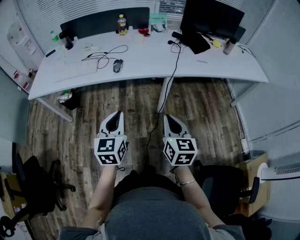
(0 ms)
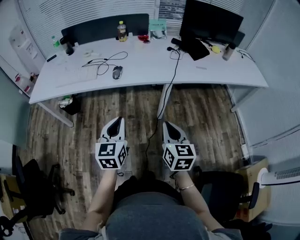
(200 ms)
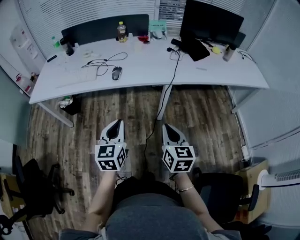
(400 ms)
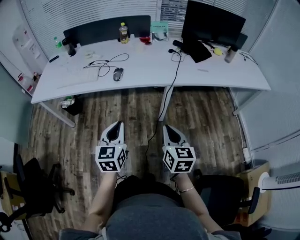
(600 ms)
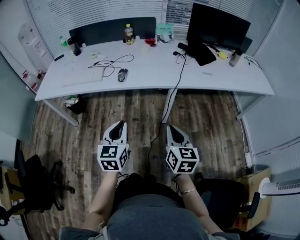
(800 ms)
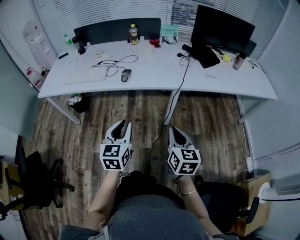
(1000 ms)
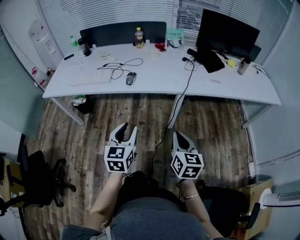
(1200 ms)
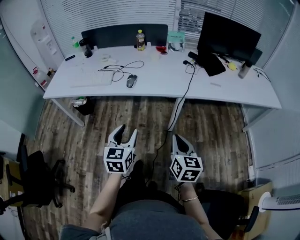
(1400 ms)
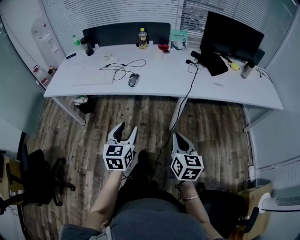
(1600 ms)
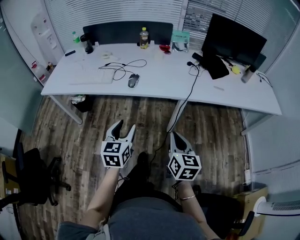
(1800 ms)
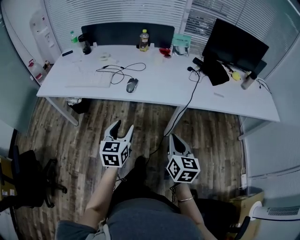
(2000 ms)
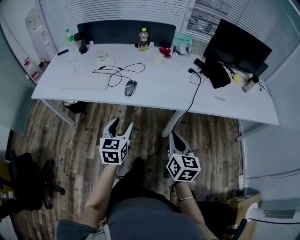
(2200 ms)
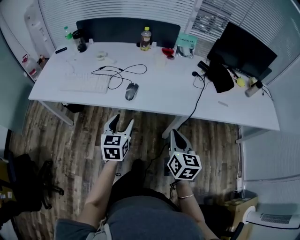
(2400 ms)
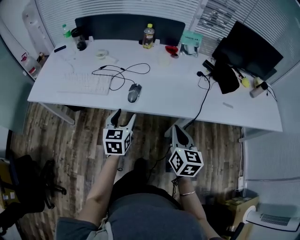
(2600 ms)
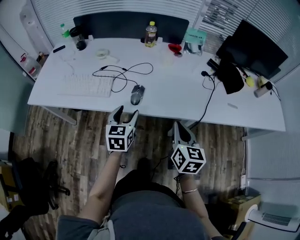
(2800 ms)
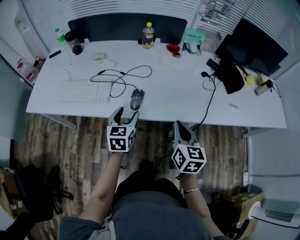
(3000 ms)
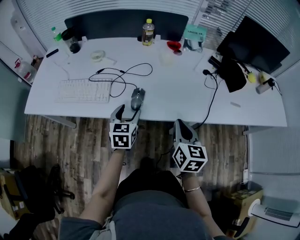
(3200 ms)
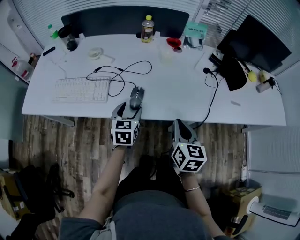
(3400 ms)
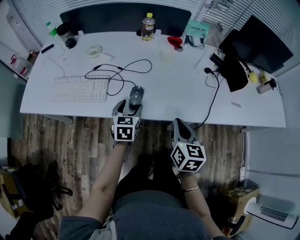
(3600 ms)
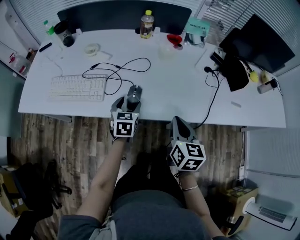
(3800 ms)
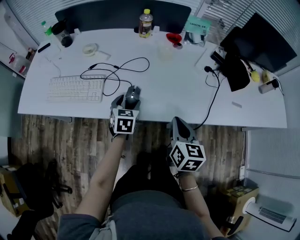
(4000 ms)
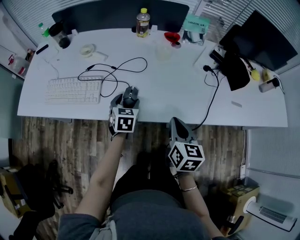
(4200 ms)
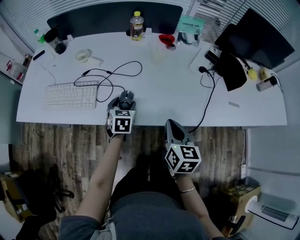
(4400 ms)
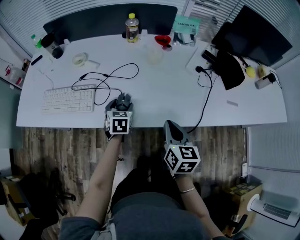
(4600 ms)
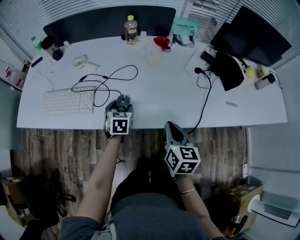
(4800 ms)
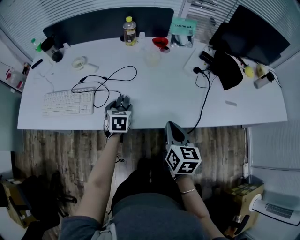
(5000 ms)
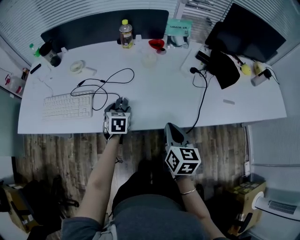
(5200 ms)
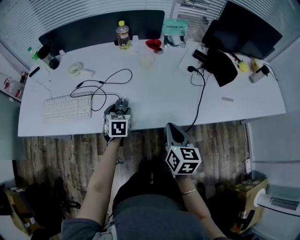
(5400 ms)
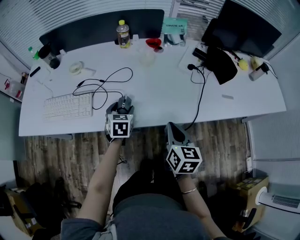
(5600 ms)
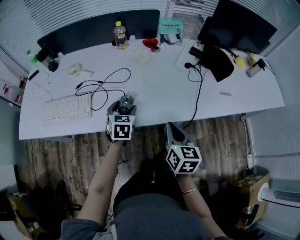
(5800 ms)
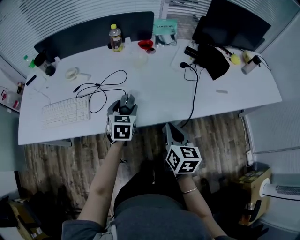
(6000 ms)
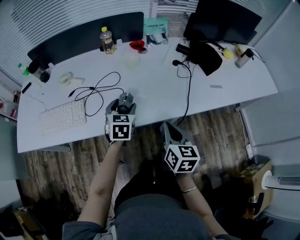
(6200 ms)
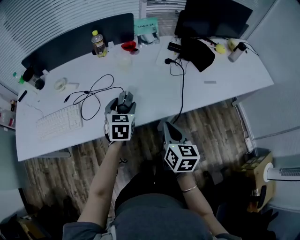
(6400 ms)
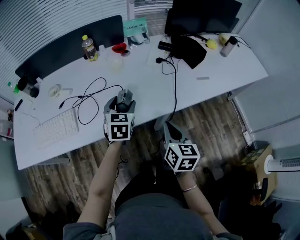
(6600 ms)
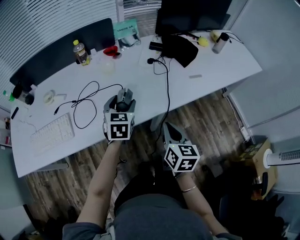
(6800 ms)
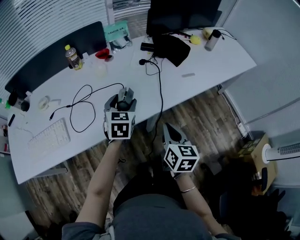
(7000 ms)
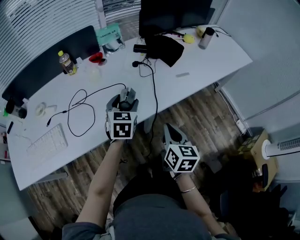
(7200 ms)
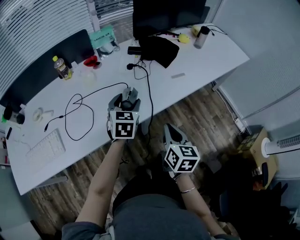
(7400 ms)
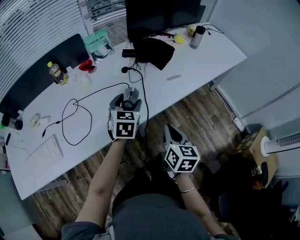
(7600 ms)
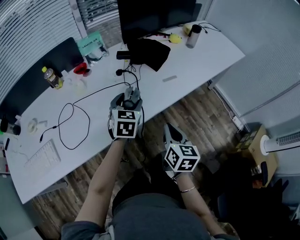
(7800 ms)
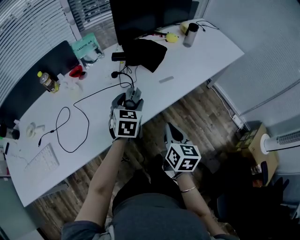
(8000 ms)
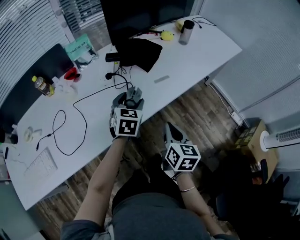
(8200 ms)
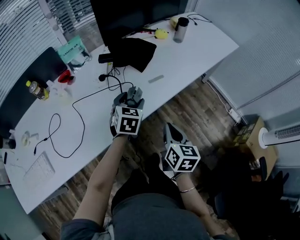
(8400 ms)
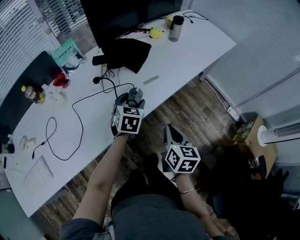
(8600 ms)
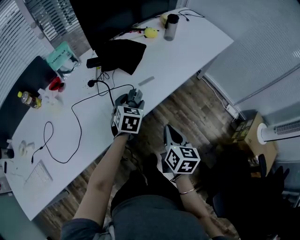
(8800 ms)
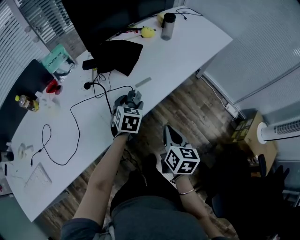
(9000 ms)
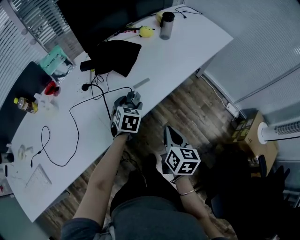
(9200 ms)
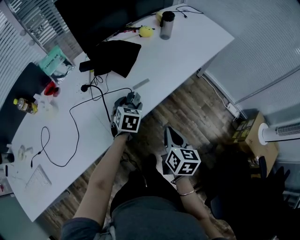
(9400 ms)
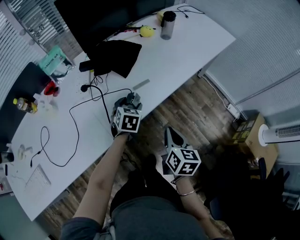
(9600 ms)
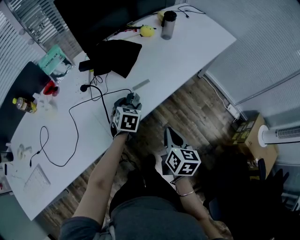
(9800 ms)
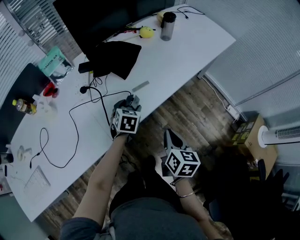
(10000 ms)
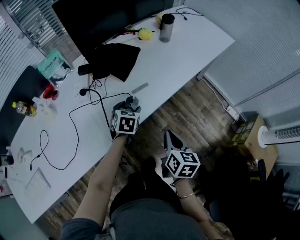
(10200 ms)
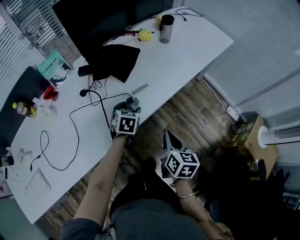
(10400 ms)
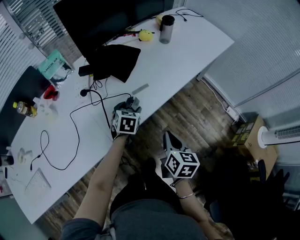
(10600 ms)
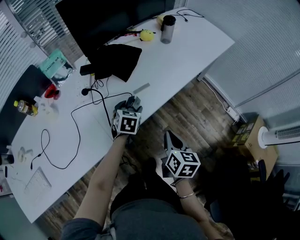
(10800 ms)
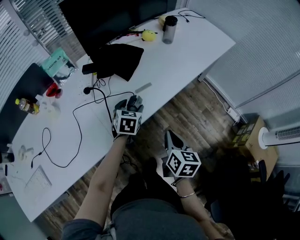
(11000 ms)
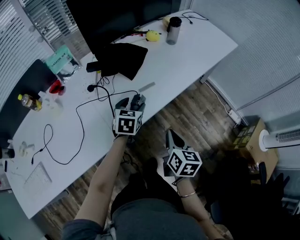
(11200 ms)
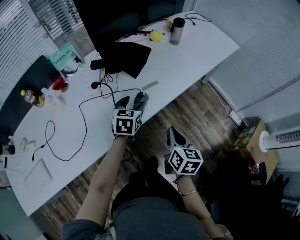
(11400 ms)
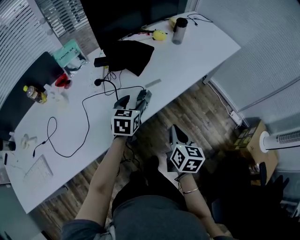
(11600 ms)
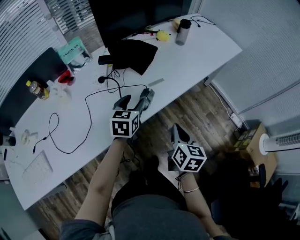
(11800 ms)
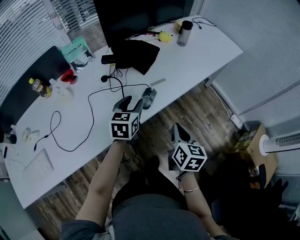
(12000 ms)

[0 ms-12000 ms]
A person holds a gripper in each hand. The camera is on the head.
0 ms to 1600 ms: The left gripper opens up.
1600 ms to 3000 ms: Both grippers move forward, roughly 30 cm.
3000 ms to 4400 ms: The left gripper moves forward and downward, some 15 cm, while the right gripper heads forward, covering roughly 5 cm.
4400 ms to 6000 ms: The right gripper moves approximately 5 cm. Meanwhile the left gripper is displaced upward and to the right by approximately 10 cm.
6000 ms to 7600 ms: The grippers both shift to the right by approximately 20 cm. The right gripper changes its angle by about 20 degrees. The left gripper swivels about 30 degrees.
7600 ms to 9000 ms: The left gripper is displaced to the right, forward and downward by approximately 20 cm; the right gripper goes roughly 15 cm to the right and forward.
9000 ms to 10400 ms: The left gripper moves some 5 cm.
10400 ms to 12000 ms: The right gripper ends up approximately 5 cm from where it was, while the left gripper heads upward, backward and to the left, covering about 15 cm, and rotates about 20 degrees.

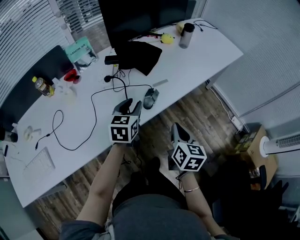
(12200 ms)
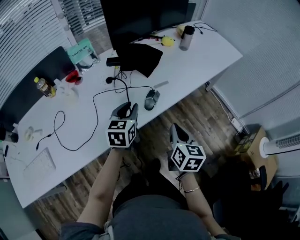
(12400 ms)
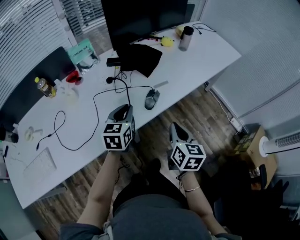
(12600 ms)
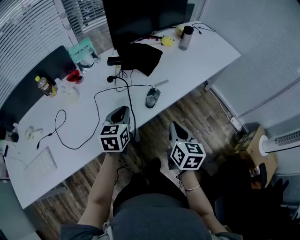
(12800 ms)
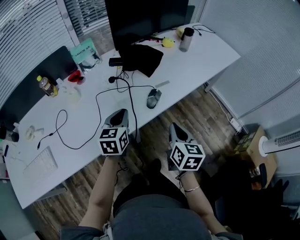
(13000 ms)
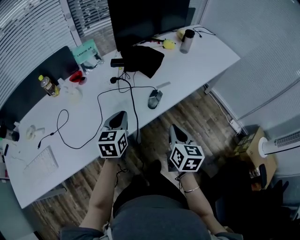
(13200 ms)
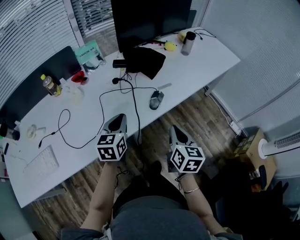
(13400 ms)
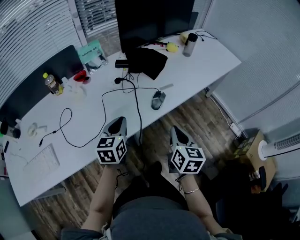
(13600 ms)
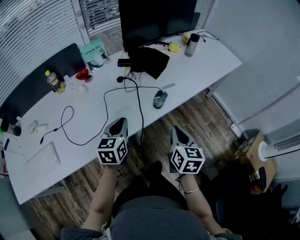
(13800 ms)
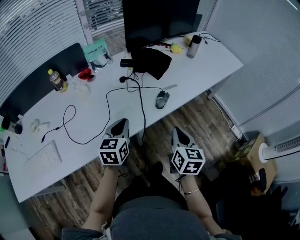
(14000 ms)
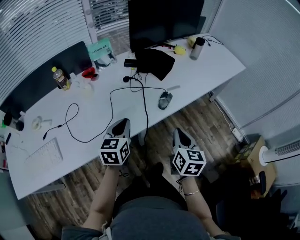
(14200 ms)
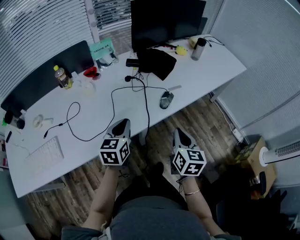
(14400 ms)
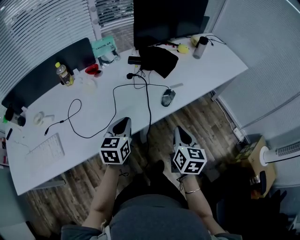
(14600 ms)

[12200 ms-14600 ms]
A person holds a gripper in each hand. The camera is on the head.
12200 ms to 13400 ms: The right gripper shifts by some 5 cm; the left gripper moves to the left and backward, approximately 10 cm, and closes up.
13400 ms to 14600 ms: The left gripper travels backward by about 5 cm.

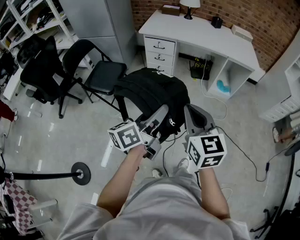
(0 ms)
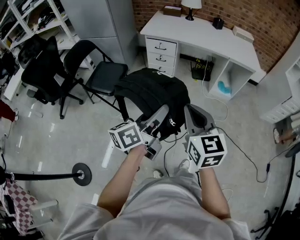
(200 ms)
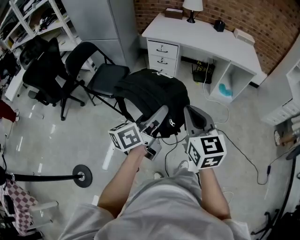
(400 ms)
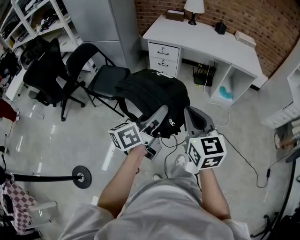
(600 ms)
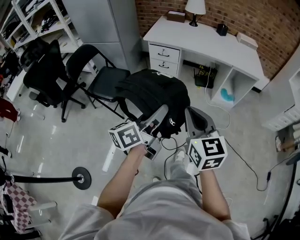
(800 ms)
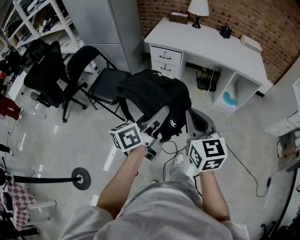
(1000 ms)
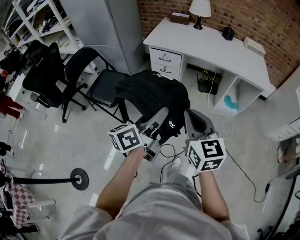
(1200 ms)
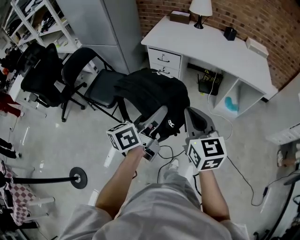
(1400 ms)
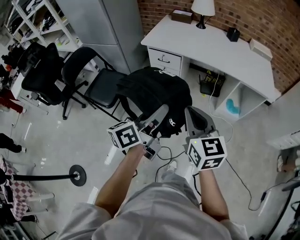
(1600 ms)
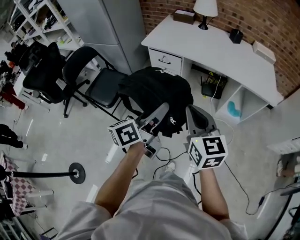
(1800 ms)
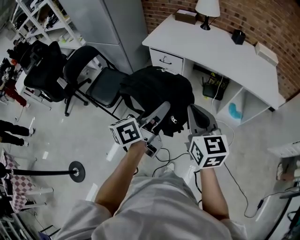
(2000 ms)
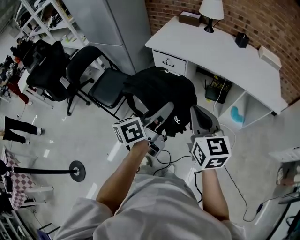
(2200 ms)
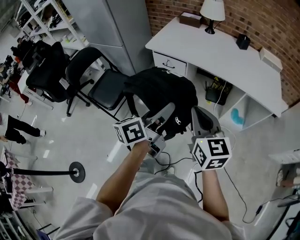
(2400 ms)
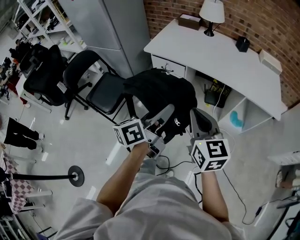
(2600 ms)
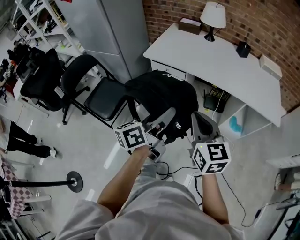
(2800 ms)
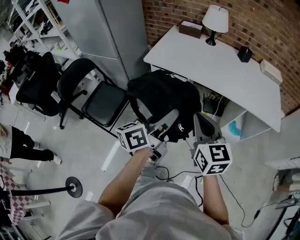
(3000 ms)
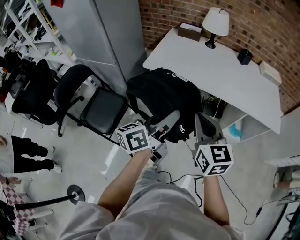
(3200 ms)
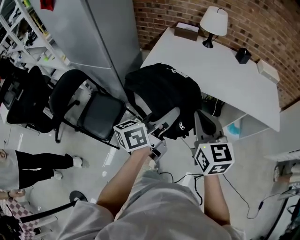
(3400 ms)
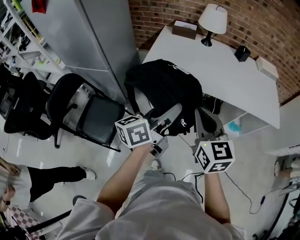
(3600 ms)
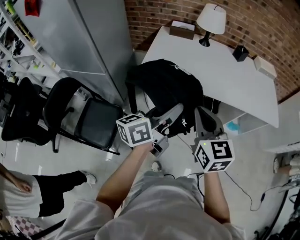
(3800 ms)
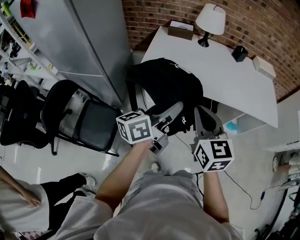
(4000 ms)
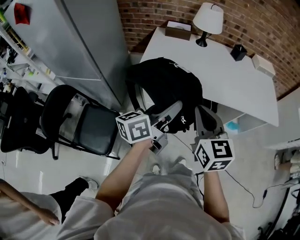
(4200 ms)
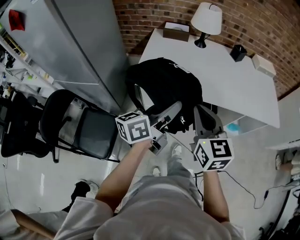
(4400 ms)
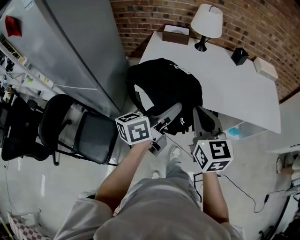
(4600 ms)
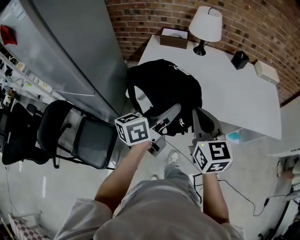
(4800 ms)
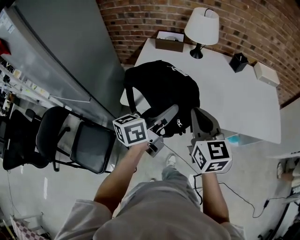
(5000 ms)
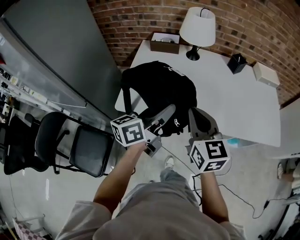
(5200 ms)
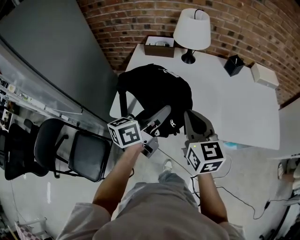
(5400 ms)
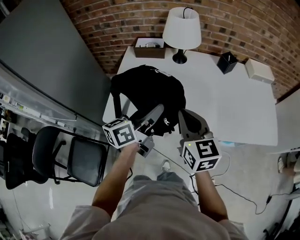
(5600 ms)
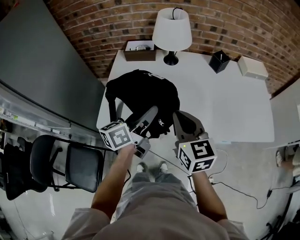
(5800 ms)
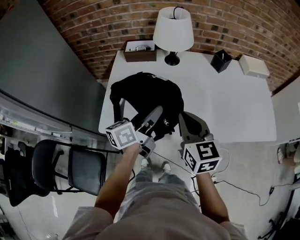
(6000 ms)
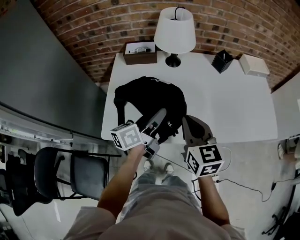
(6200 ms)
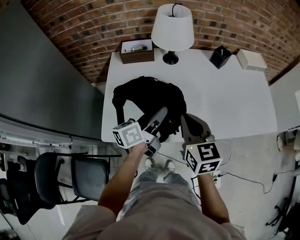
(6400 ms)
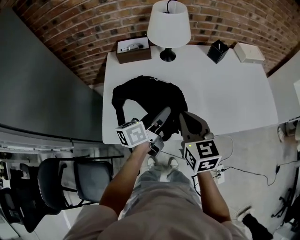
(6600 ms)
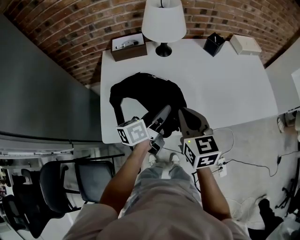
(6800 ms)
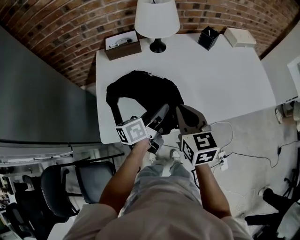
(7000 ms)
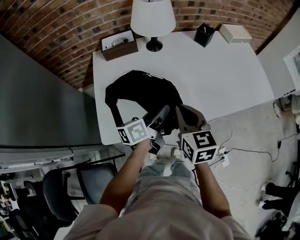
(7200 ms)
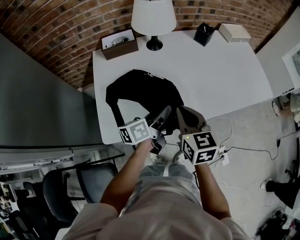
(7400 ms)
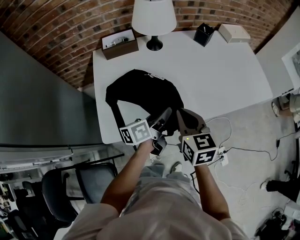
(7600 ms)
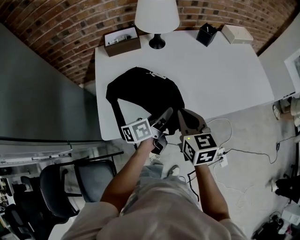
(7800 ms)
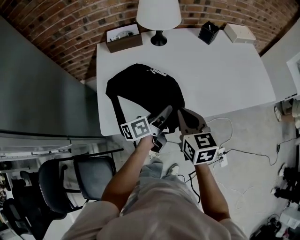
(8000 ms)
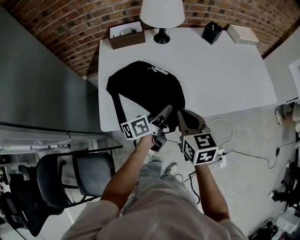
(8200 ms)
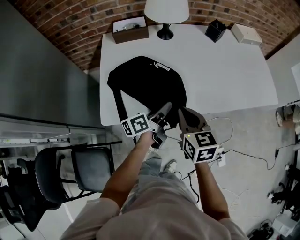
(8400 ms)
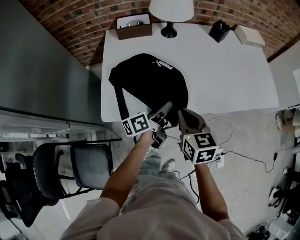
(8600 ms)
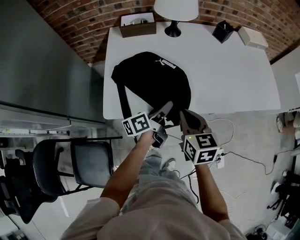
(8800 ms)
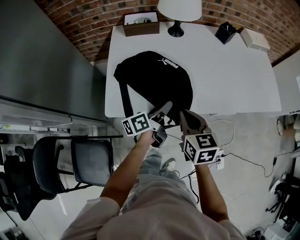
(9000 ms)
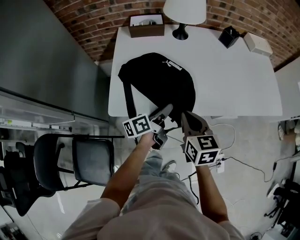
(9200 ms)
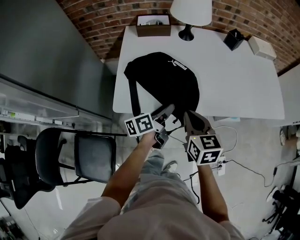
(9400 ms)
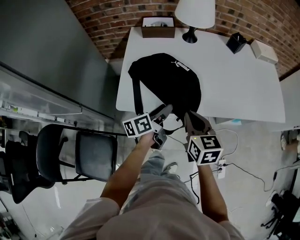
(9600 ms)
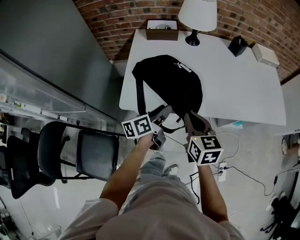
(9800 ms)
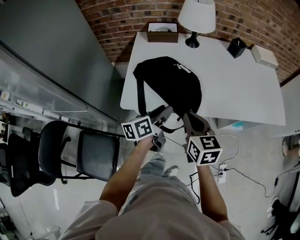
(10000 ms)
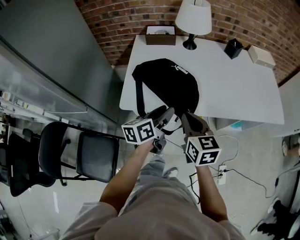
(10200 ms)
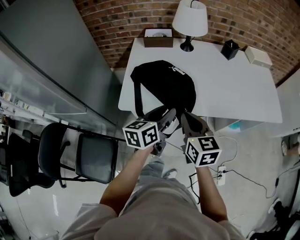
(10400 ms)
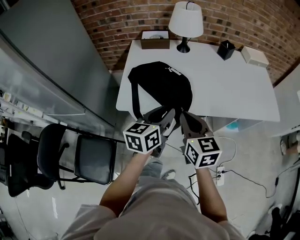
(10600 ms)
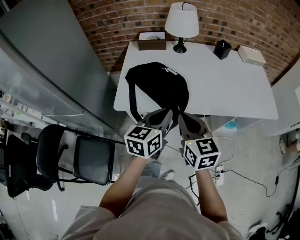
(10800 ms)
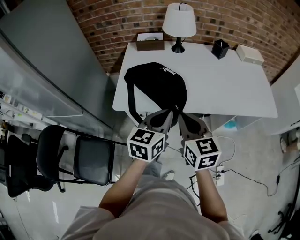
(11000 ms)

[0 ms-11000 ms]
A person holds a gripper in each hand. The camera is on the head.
0 ms to 1600 ms: Both grippers travel together forward, about 25 cm.
1600 ms to 3200 ms: The two grippers go approximately 20 cm forward.
3200 ms to 4800 ms: The grippers both shift forward by some 25 cm.
4800 ms to 6200 ms: Both grippers travel together forward, some 20 cm.
6200 ms to 7800 ms: The left gripper goes some 10 cm downward; the right gripper heads downward, covering approximately 5 cm.
7800 ms to 9400 ms: Both grippers travel together backward, approximately 5 cm.
9400 ms to 11000 ms: The left gripper travels upward and backward by about 20 cm, twists approximately 50 degrees clockwise, seen from behind, and closes. Meanwhile the right gripper travels upward and backward by about 10 cm.
